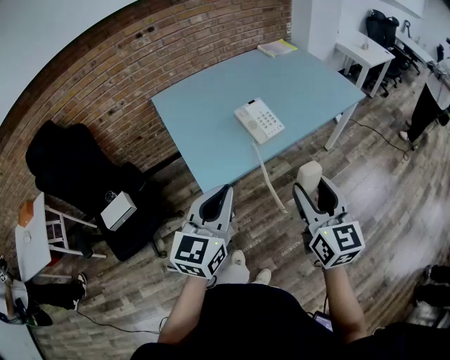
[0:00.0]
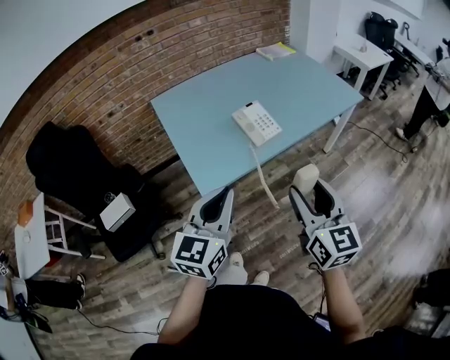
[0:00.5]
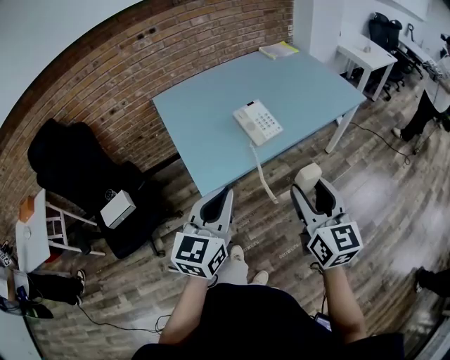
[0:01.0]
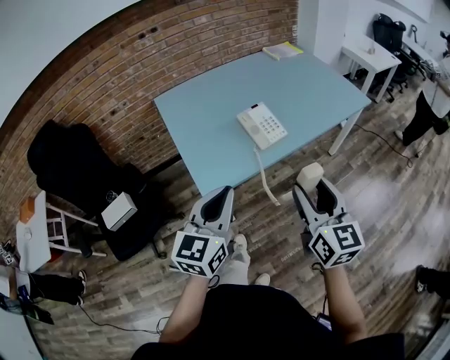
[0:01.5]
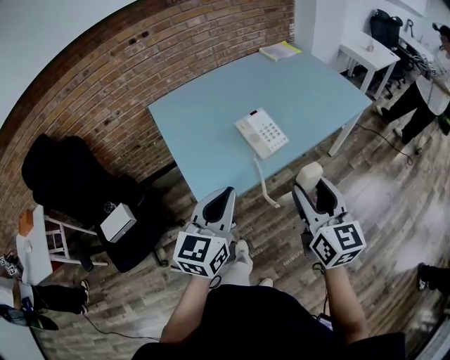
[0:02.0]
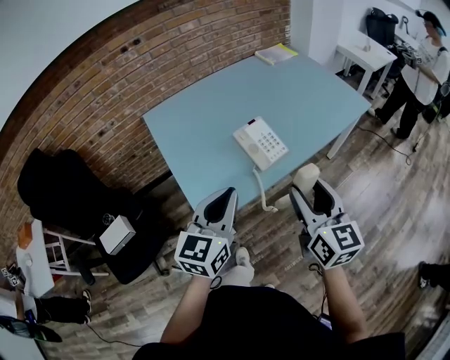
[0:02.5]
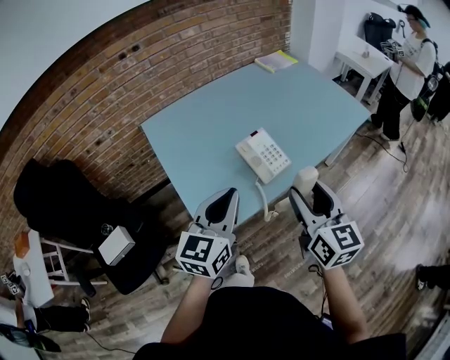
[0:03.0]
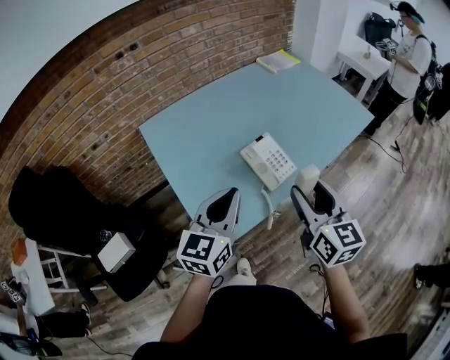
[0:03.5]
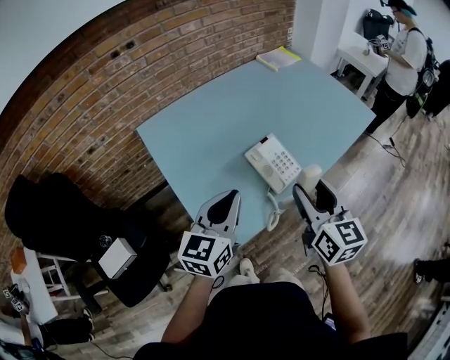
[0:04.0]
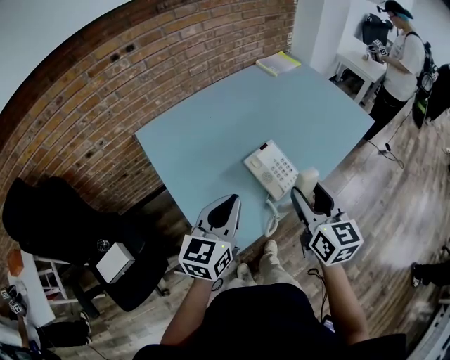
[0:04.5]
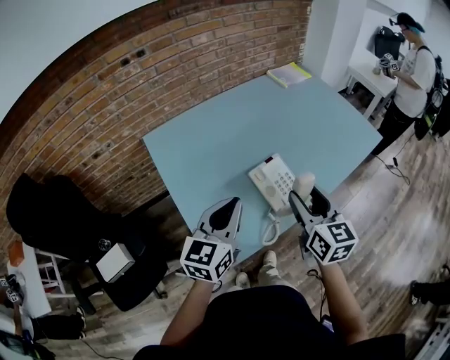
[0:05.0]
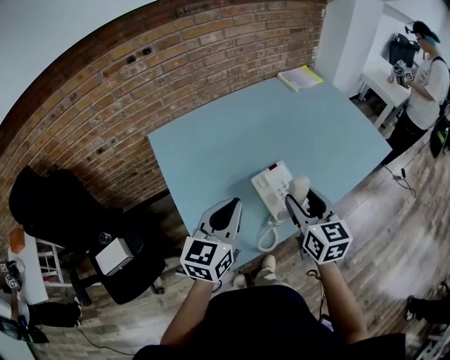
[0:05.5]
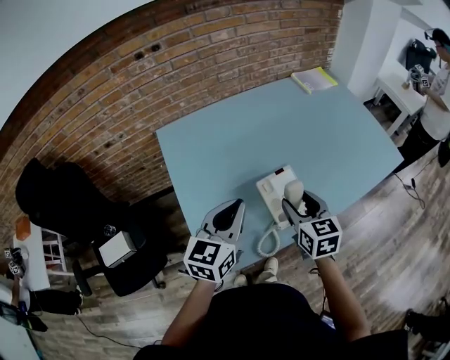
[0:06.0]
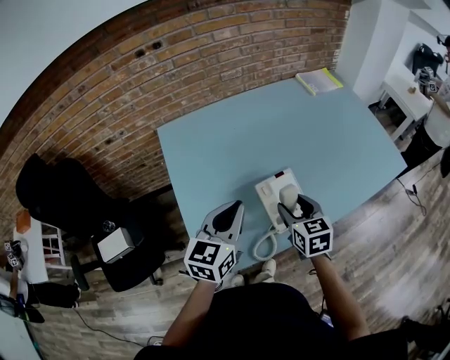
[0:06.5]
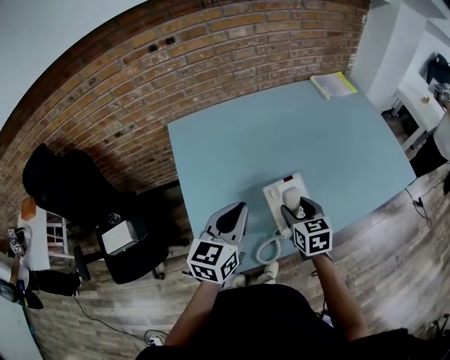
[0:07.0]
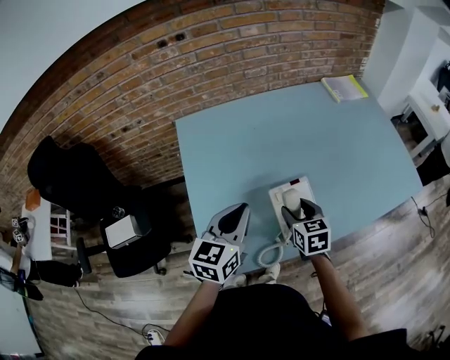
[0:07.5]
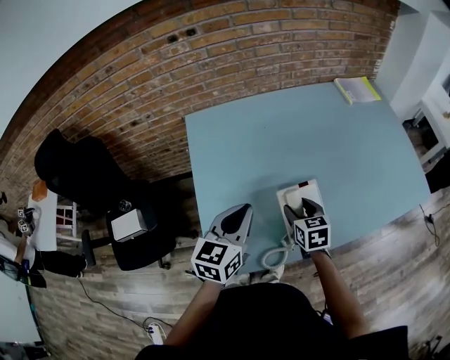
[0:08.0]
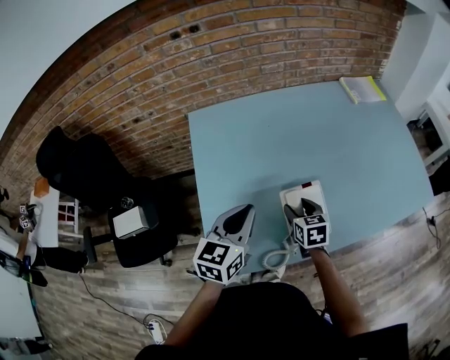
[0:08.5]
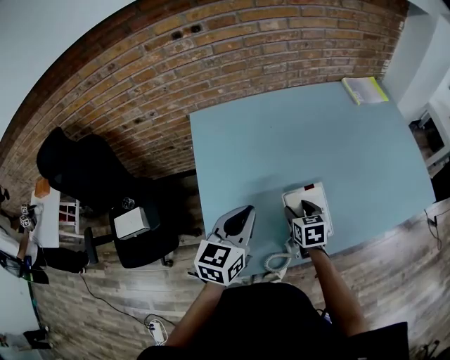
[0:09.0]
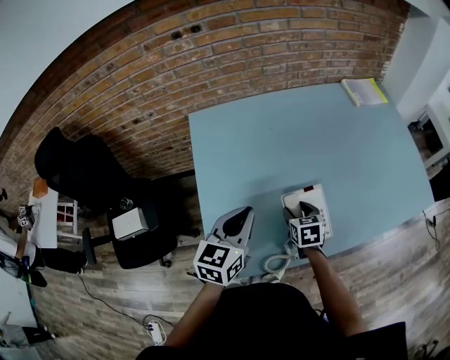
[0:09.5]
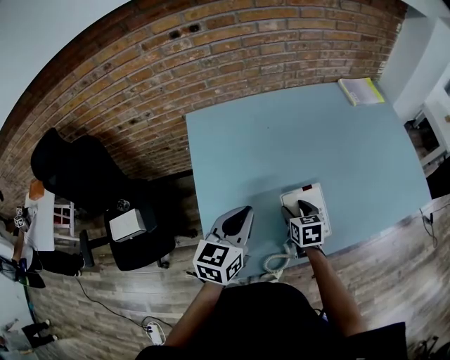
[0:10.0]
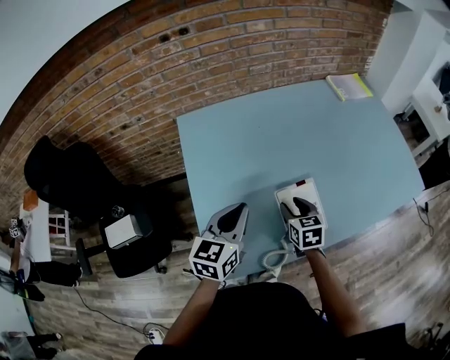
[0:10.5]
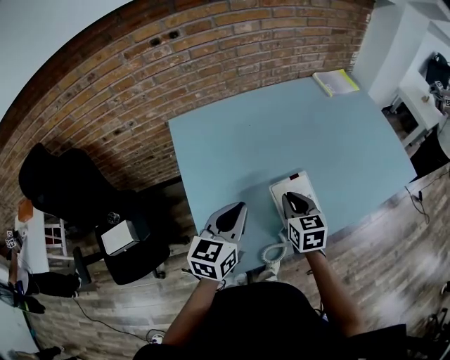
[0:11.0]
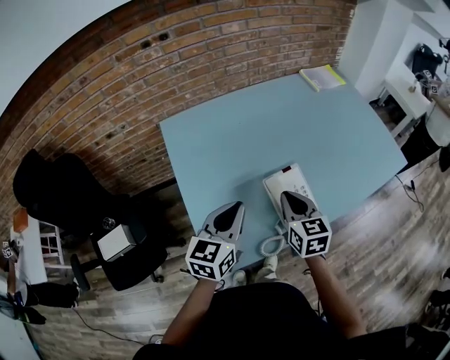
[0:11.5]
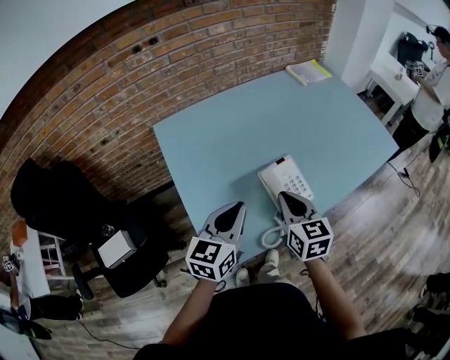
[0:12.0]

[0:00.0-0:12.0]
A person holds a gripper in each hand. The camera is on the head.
0:00.0 to 0:02.0: Both grippers move forward, about 10 cm.
0:02.0 to 0:04.0: The two grippers go roughly 20 cm forward and to the left.
0:04.0 to 0:06.0: The right gripper shifts some 15 cm forward and downward, and swivels about 20 degrees. The left gripper is displaced forward by roughly 10 cm.
0:06.0 to 0:08.0: The left gripper shifts by some 5 cm. The right gripper travels downward and forward by some 15 cm.
0:08.0 to 0:10.0: The right gripper changes place by roughly 5 cm.
0:10.0 to 0:12.0: The right gripper goes some 20 cm upward and backward, changes its angle by approximately 30 degrees, and closes, while the left gripper heads backward, covering roughly 5 cm.

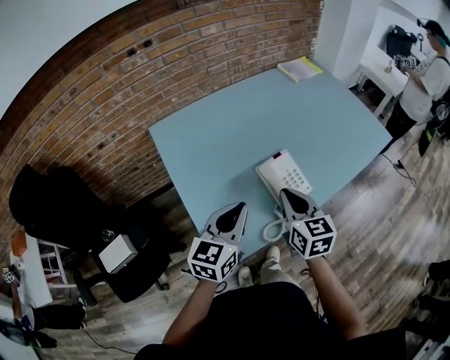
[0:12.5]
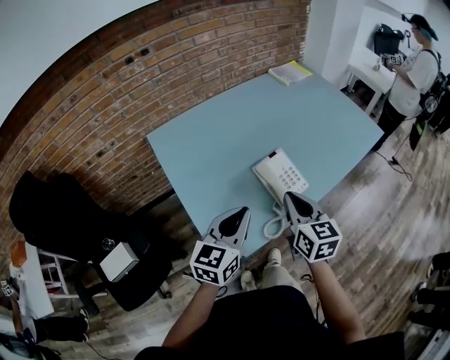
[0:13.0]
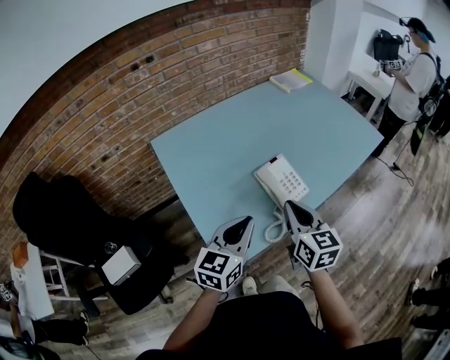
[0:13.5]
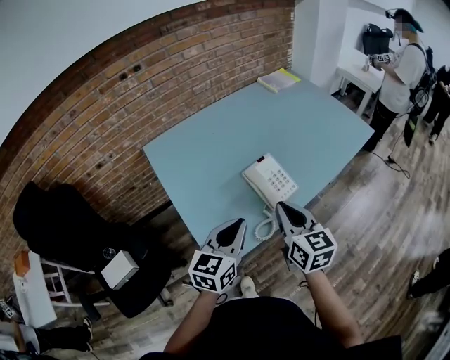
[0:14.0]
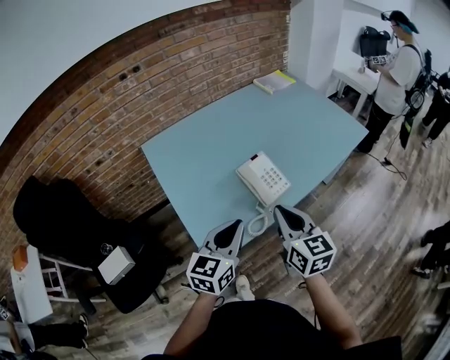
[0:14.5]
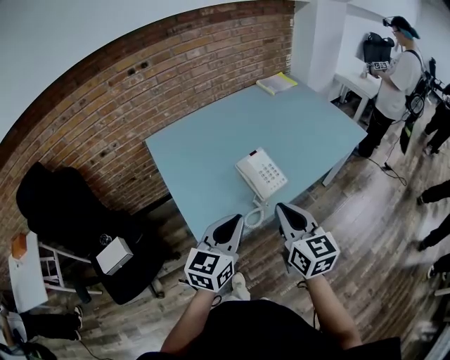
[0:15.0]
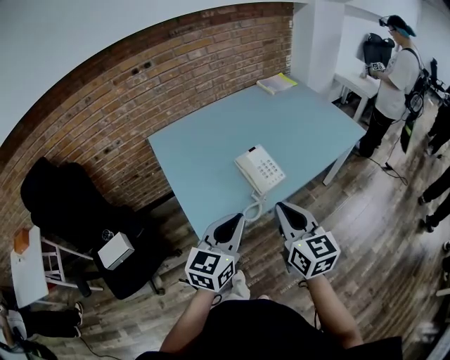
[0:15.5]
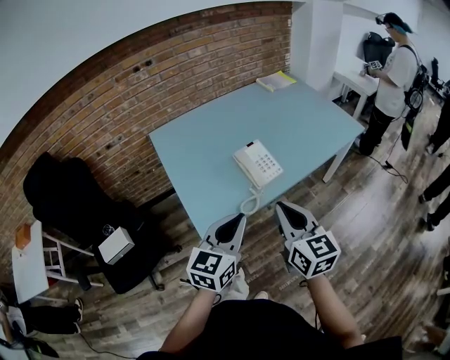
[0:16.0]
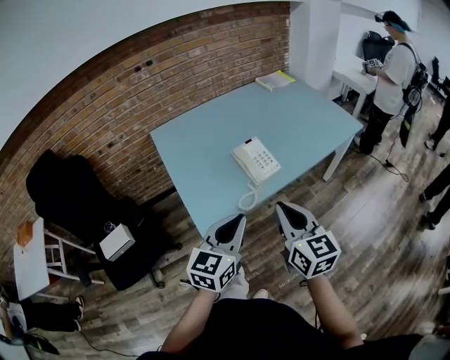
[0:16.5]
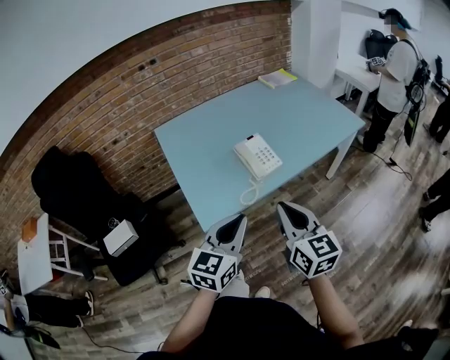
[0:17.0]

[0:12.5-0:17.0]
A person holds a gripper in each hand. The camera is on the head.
0:12.5 to 0:14.5: The grippers both shift backward and to the right by approximately 10 cm.
0:14.5 to 0:17.0: Both grippers move backward and to the right, approximately 15 cm.

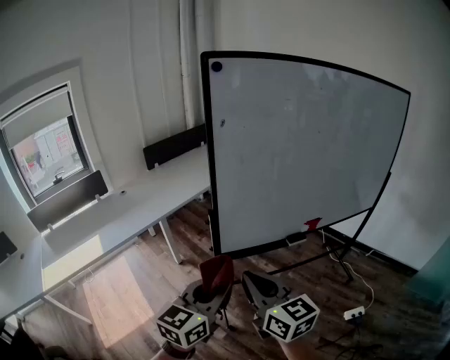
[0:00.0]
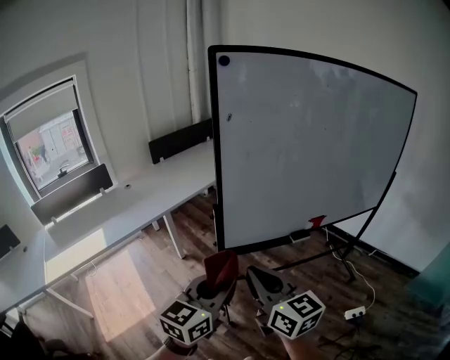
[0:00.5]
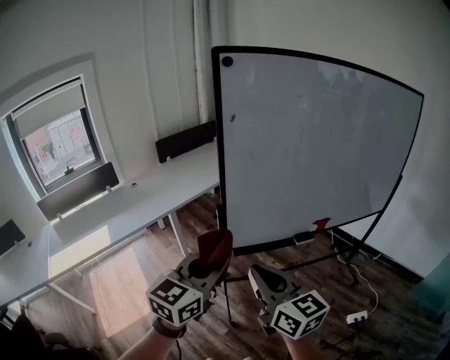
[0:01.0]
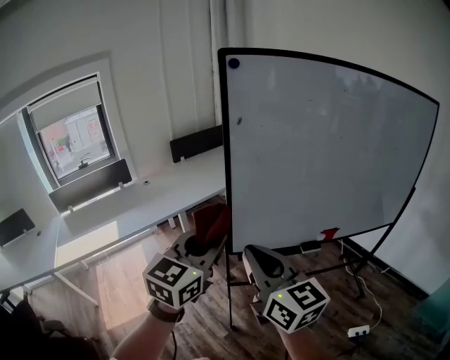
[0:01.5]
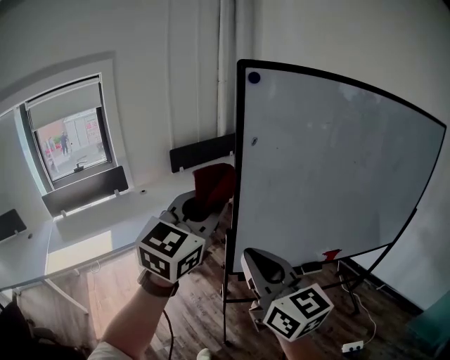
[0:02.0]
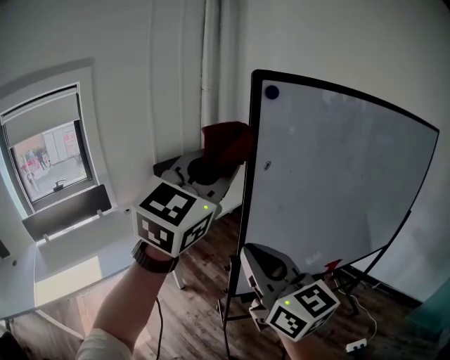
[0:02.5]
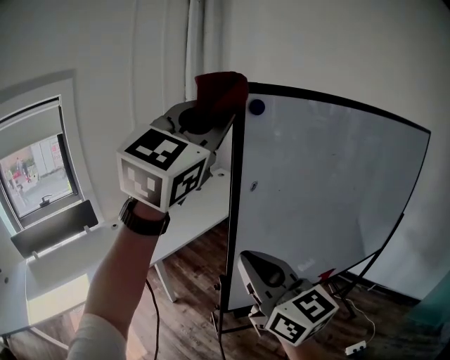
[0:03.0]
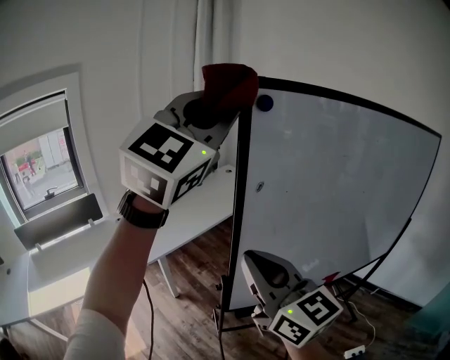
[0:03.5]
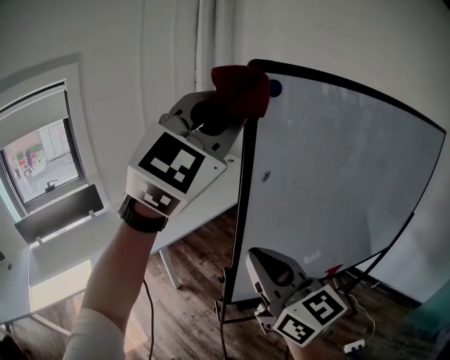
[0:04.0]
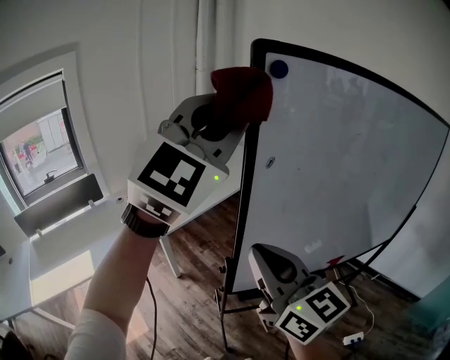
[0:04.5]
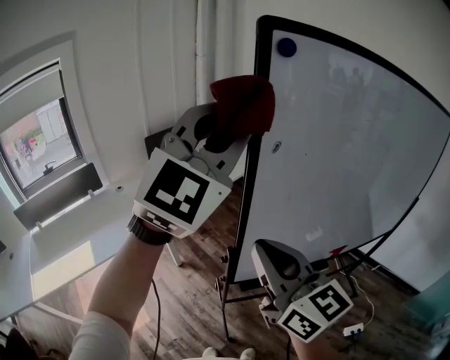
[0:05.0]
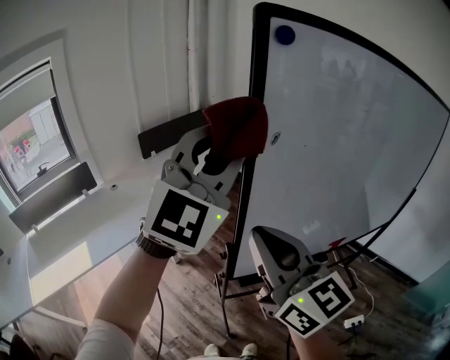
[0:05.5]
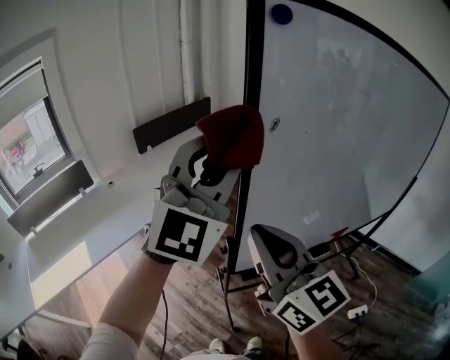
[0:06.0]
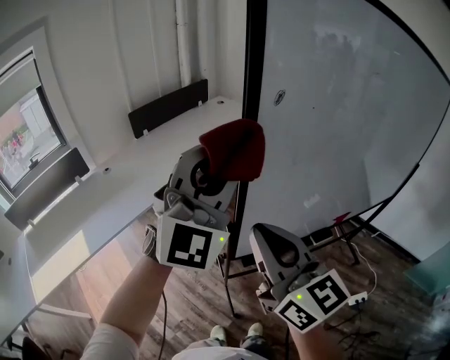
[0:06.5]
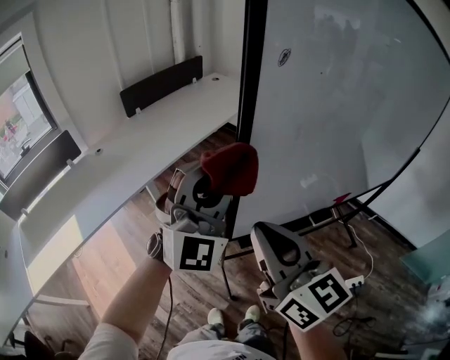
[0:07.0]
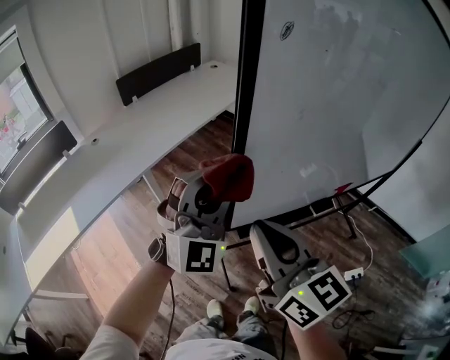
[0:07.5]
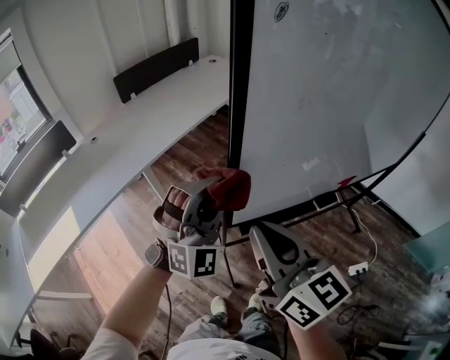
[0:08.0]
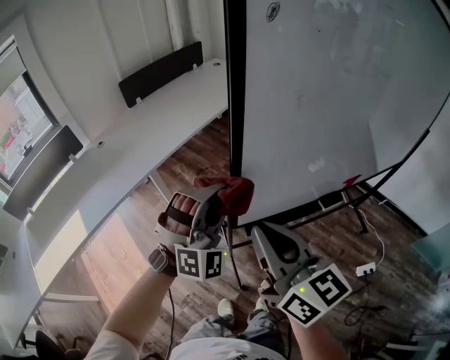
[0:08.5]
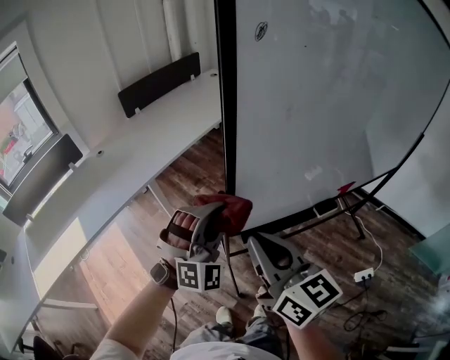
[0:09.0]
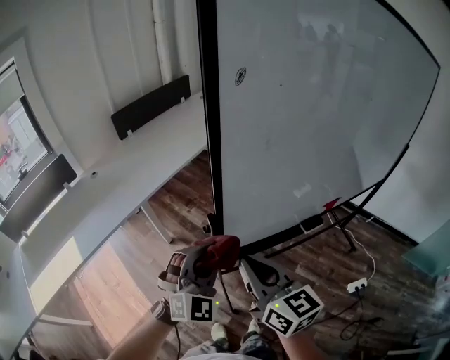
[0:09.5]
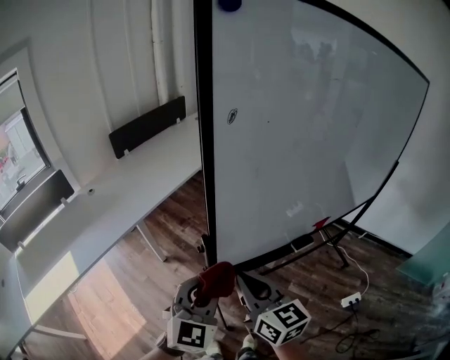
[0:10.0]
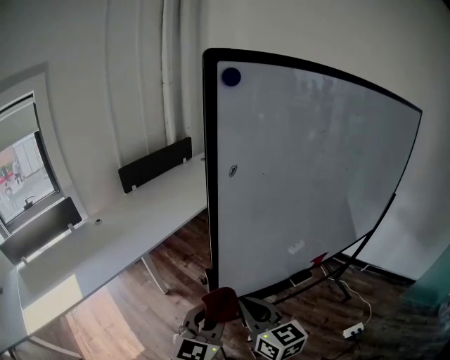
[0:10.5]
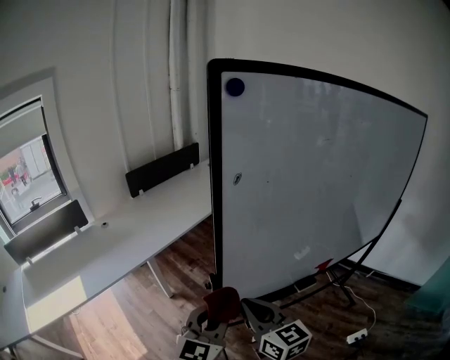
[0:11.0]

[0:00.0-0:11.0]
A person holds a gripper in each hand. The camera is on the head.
0:00.0 to 0:02.0: The right gripper moves upward and forward, roughly 15 cm. Meanwhile the left gripper is displaced upward and forward by approximately 25 cm, and swivels about 30 degrees.
0:02.0 to 0:03.5: The right gripper is displaced forward by approximately 15 cm. The left gripper shifts approximately 25 cm upward and forward, and turns by about 30 degrees.
0:03.5 to 0:05.5: The left gripper shifts approximately 15 cm downward.
0:05.5 to 0:07.5: The left gripper is displaced downward by approximately 25 cm. Meanwhile the right gripper goes about 15 cm downward.
0:07.5 to 0:09.0: The left gripper travels downward by some 10 cm, and changes its angle by some 20 degrees.
0:09.0 to 0:11.0: The left gripper heads upward and backward, covering some 10 cm, and twists some 60 degrees counterclockwise, seen from behind.
